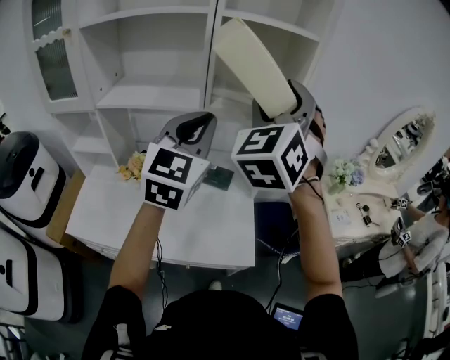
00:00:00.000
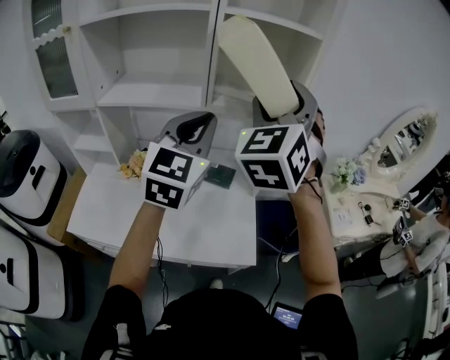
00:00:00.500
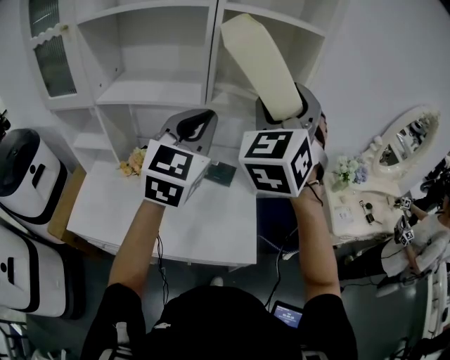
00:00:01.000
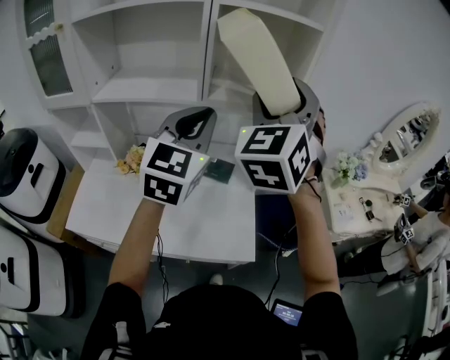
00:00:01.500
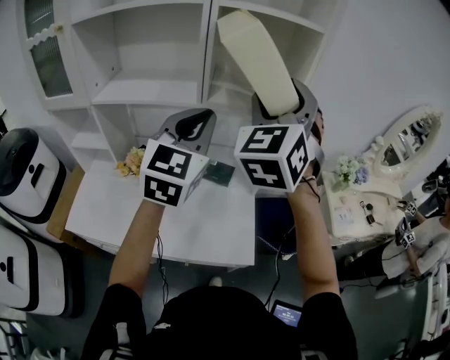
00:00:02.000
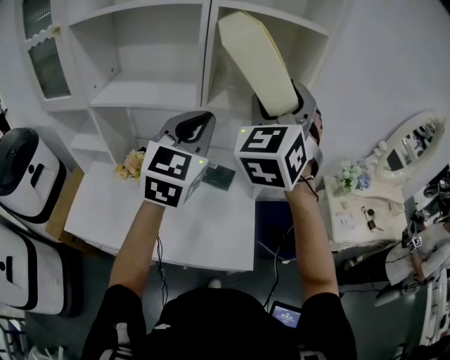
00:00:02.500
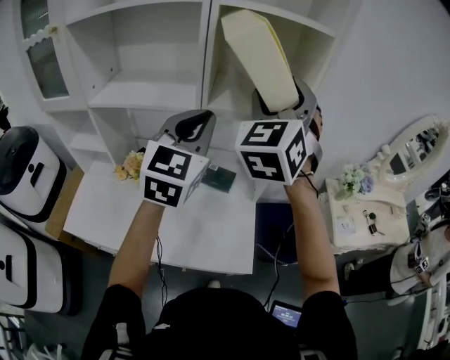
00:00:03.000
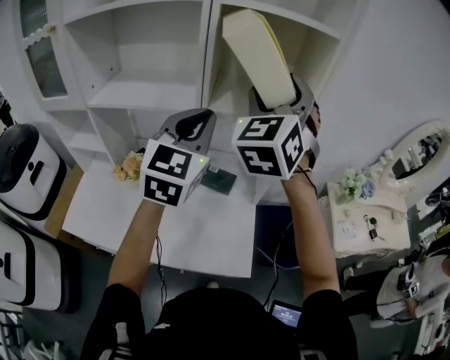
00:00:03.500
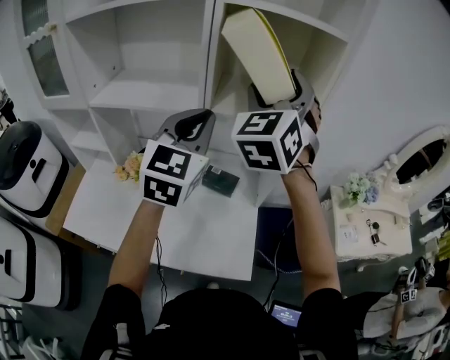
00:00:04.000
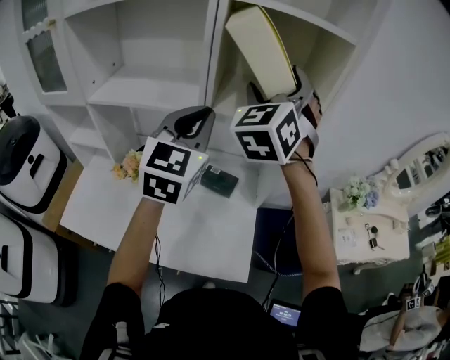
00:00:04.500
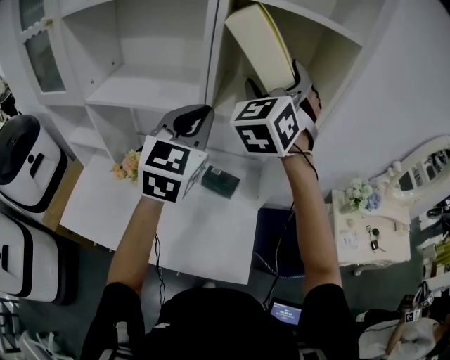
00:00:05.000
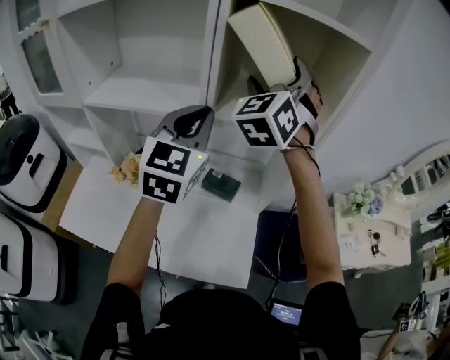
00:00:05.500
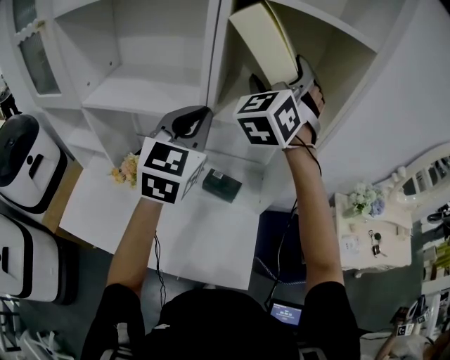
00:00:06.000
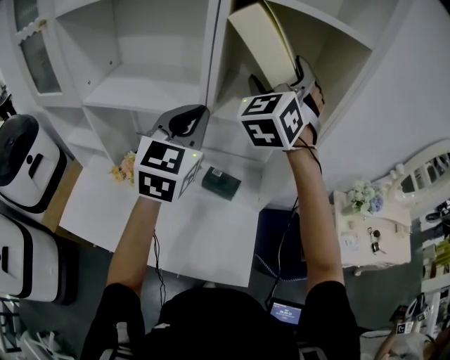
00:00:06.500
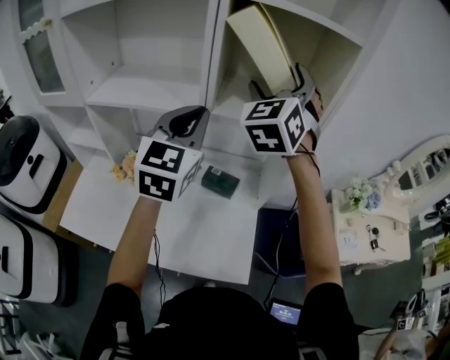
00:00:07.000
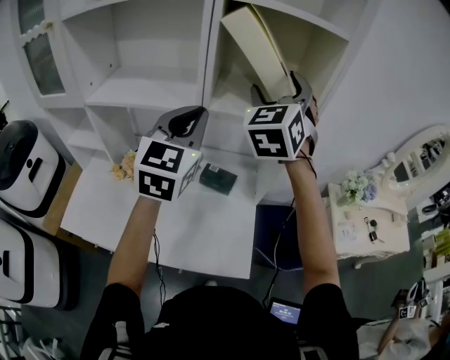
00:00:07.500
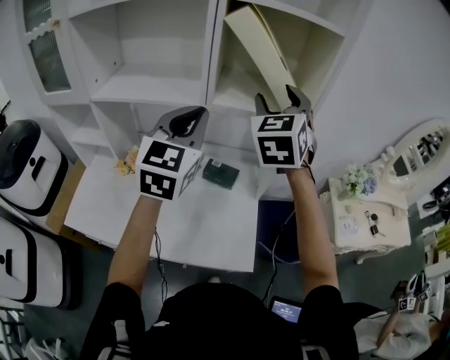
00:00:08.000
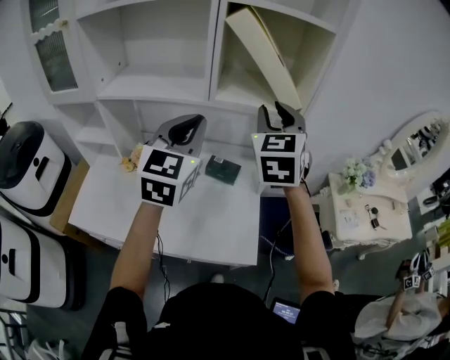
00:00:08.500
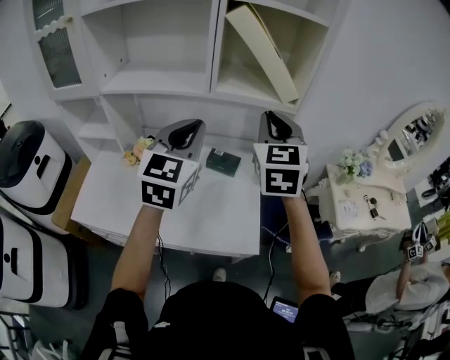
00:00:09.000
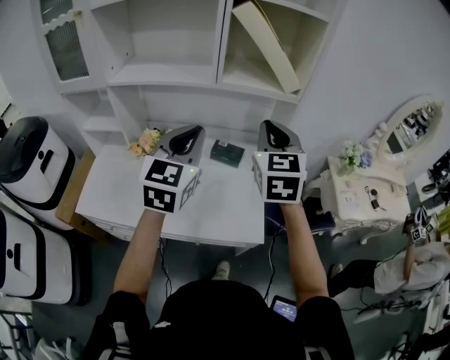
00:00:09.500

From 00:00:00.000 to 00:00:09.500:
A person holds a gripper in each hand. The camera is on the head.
From 00:00:00.000 to 00:00:02.000: The grippers stay close to where they were, moving slightly.
From 00:00:02.000 to 00:00:04.000: The right gripper moves forward, roughly 10 cm. The left gripper goes about 5 cm forward.
From 00:00:04.000 to 00:00:05.500: The left gripper heads forward, covering about 5 cm. Meanwhile the right gripper moves forward, about 10 cm.
From 00:00:05.500 to 00:00:07.500: The right gripper travels backward by some 5 cm.
From 00:00:07.500 to 00:00:09.500: The right gripper moves backward and downward, some 20 cm, rotates some 20 degrees, and closes. Meanwhile the left gripper travels backward by some 15 cm.

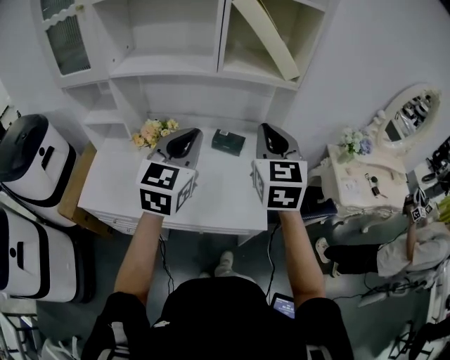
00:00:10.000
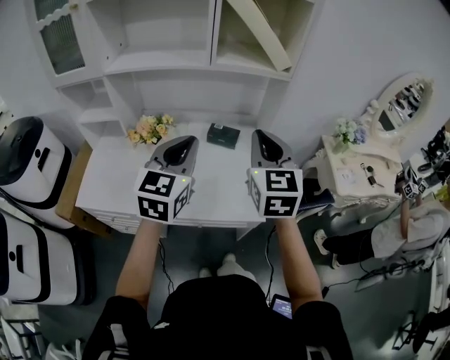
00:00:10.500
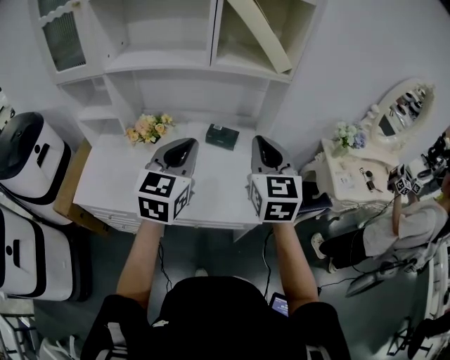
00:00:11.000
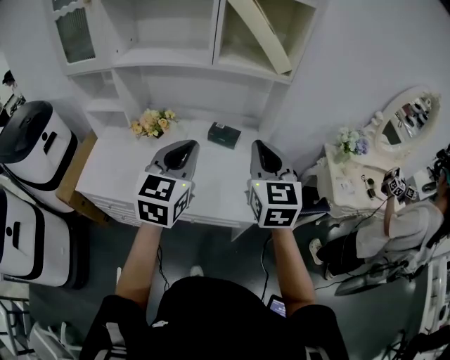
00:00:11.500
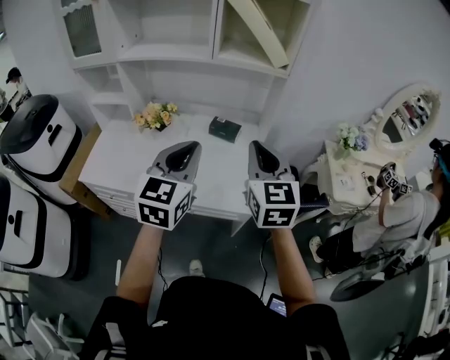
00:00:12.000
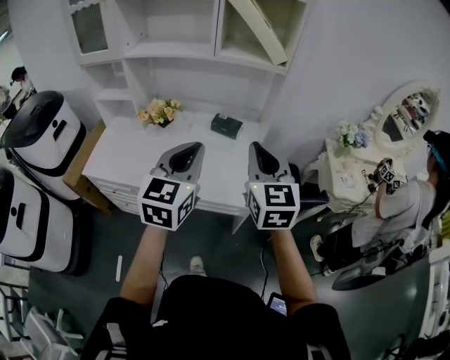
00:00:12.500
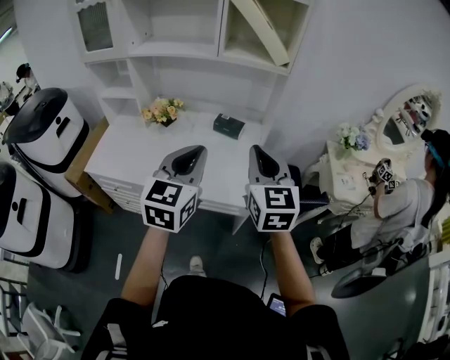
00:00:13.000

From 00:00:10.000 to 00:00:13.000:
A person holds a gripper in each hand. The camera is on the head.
From 00:00:10.000 to 00:00:11.500: The grippers both shift backward by about 5 cm.
From 00:00:11.500 to 00:00:13.000: Both grippers travel together backward, about 10 cm.

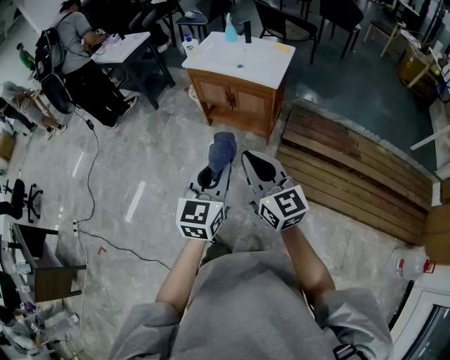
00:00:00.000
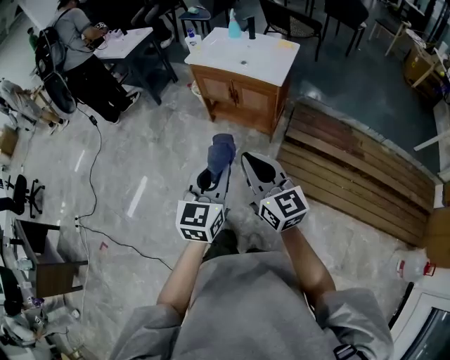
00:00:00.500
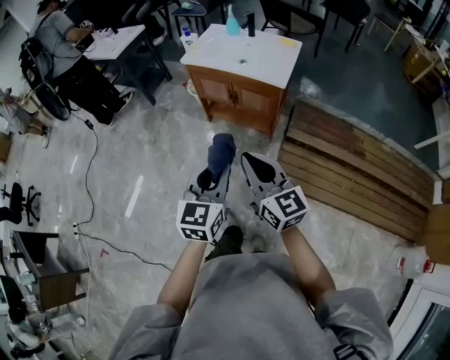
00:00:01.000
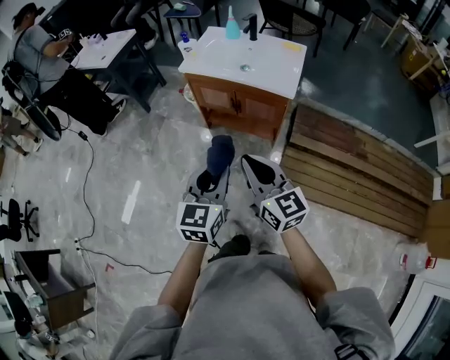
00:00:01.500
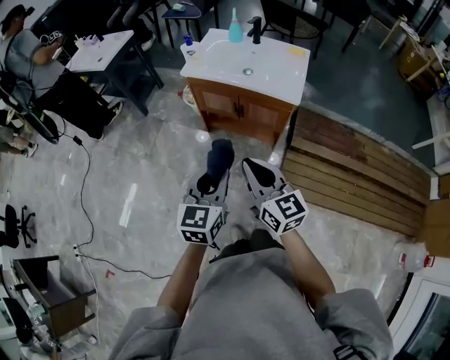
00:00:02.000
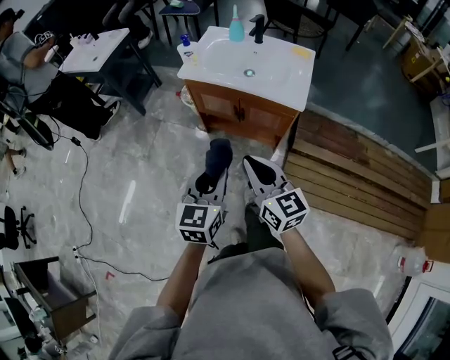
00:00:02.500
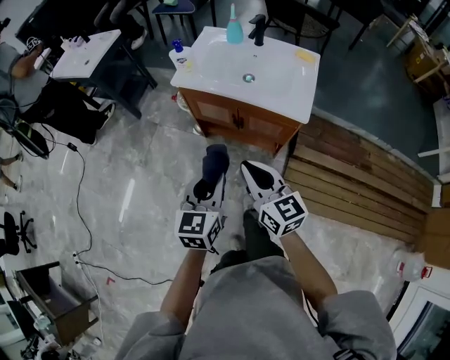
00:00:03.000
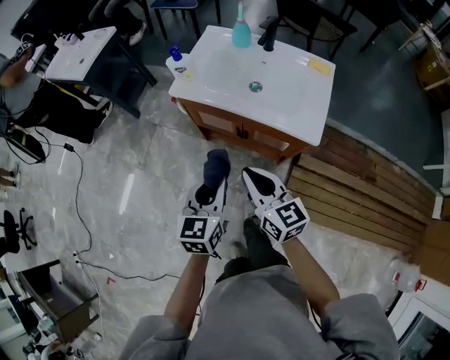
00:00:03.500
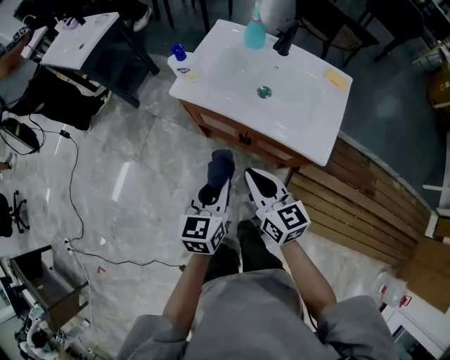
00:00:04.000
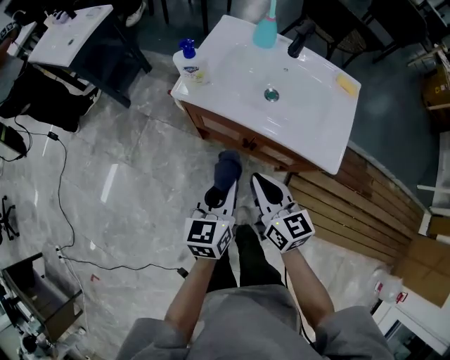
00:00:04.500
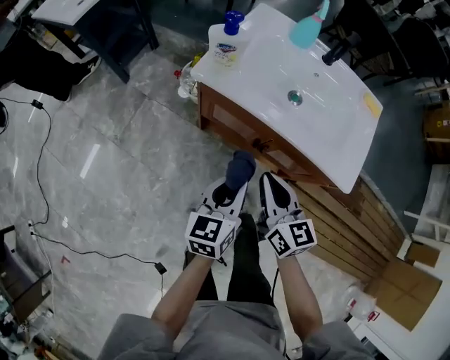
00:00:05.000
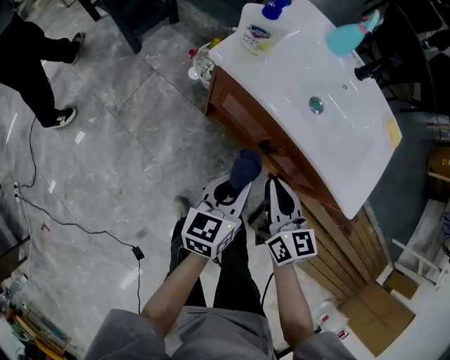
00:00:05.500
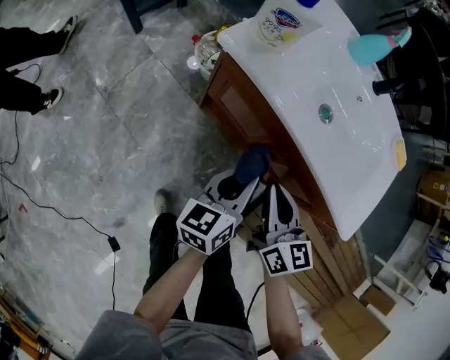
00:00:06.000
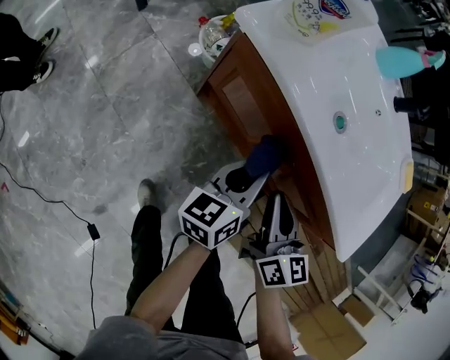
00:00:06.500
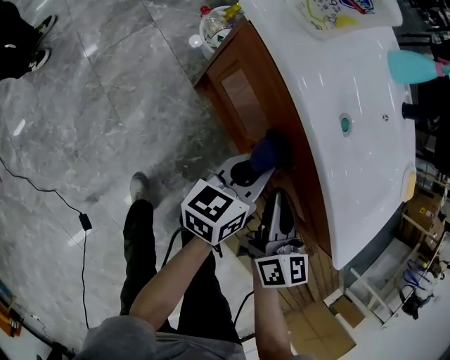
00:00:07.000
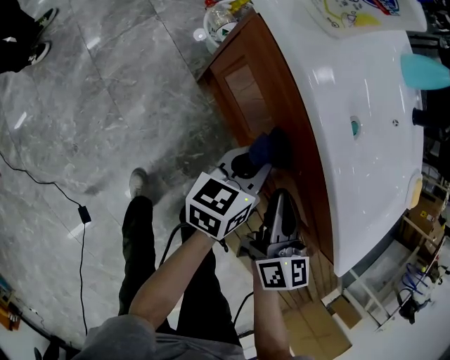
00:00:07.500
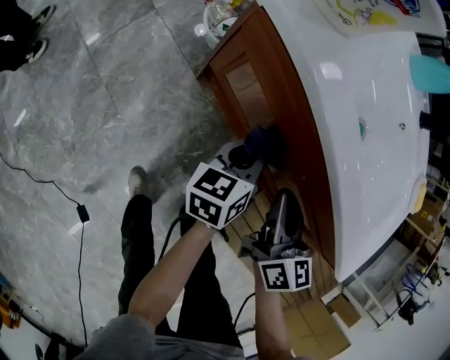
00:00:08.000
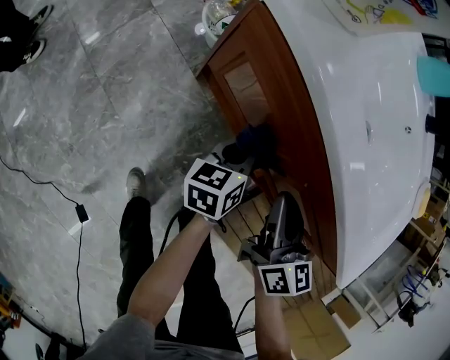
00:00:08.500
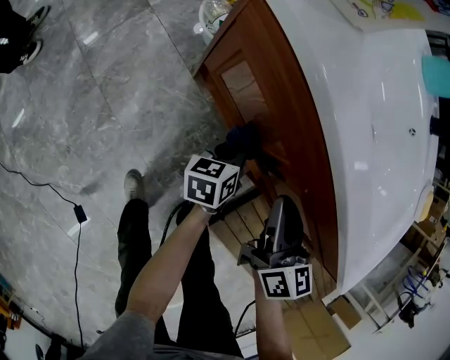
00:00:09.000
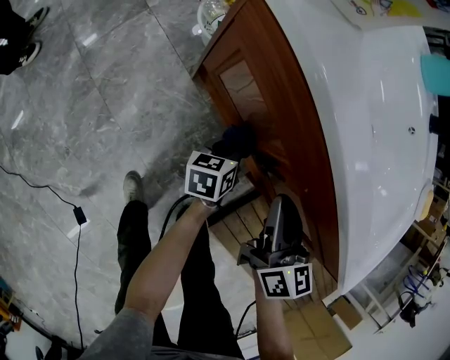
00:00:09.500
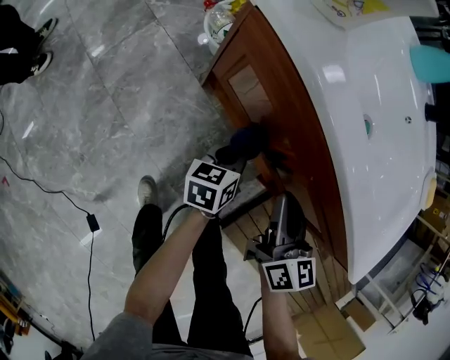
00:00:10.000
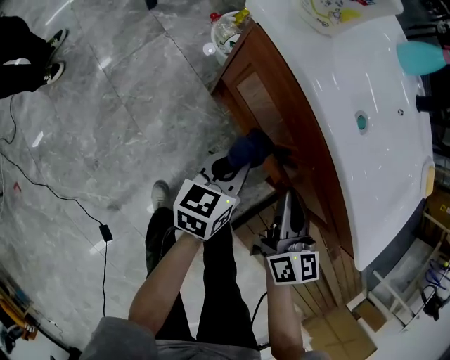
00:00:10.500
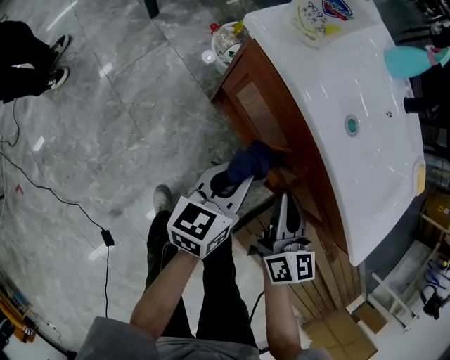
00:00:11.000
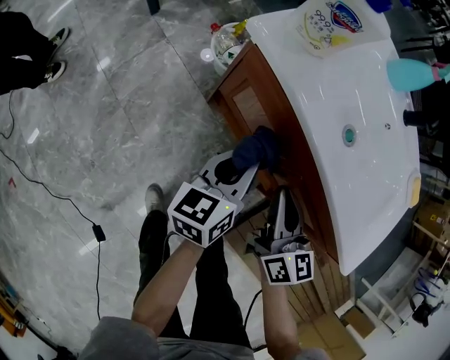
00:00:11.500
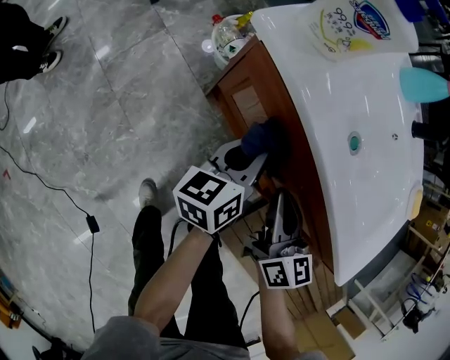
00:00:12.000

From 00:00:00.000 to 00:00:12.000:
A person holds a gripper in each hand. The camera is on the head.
From 00:00:00.000 to 00:00:02.000: Both grippers move forward and to the left, approximately 25 cm.
From 00:00:02.000 to 00:00:04.000: Both grippers travel together forward and downward, roughly 30 cm.
From 00:00:04.000 to 00:00:06.000: Both grippers move downward and forward, about 20 cm. The left gripper rotates approximately 30 degrees.
From 00:00:06.000 to 00:00:08.000: The right gripper travels downward by approximately 10 cm, while the left gripper heads downward and forward, covering roughly 15 cm.
From 00:00:08.000 to 00:00:10.000: The left gripper moves downward, some 10 cm.
From 00:00:10.000 to 00:00:12.000: The left gripper is displaced upward by roughly 15 cm, and rotates approximately 20 degrees, while the right gripper changes place by about 5 cm.

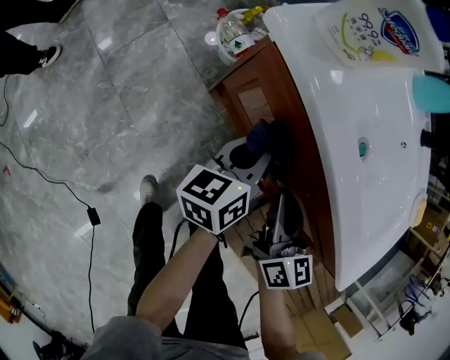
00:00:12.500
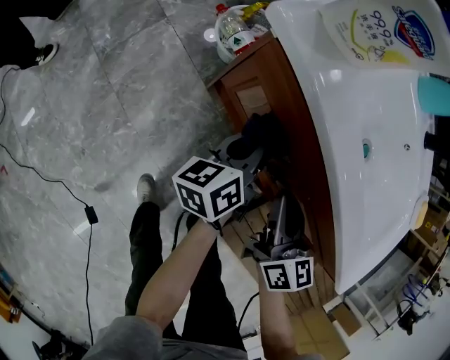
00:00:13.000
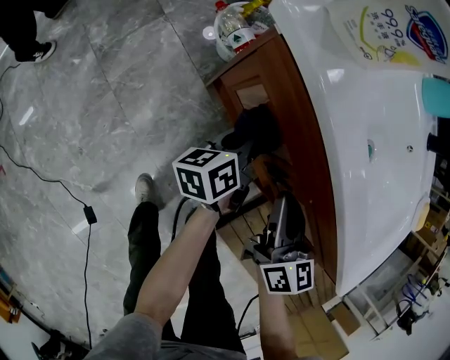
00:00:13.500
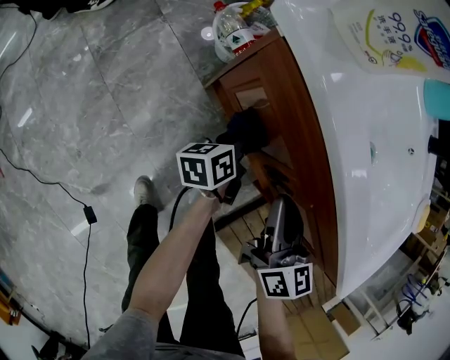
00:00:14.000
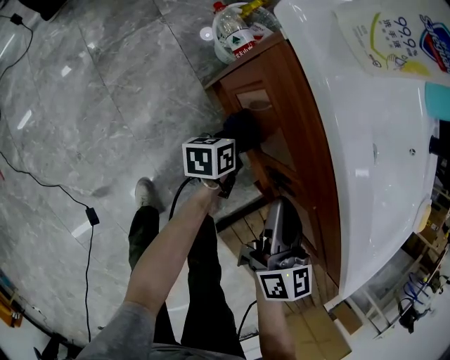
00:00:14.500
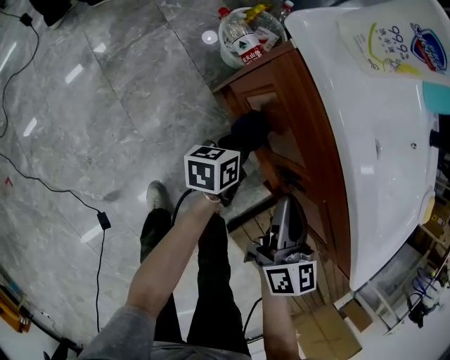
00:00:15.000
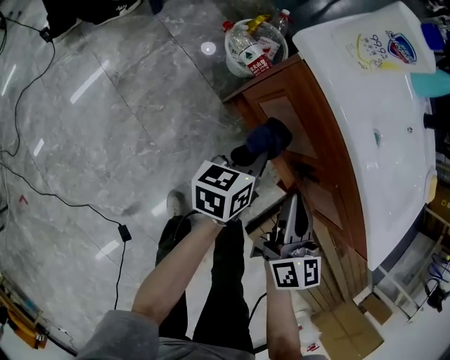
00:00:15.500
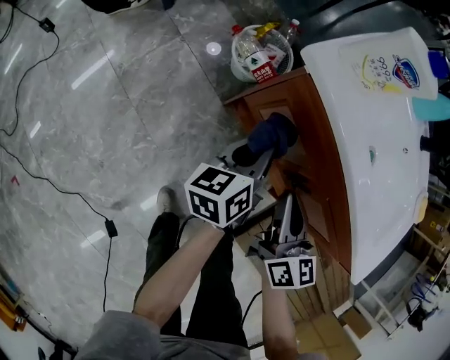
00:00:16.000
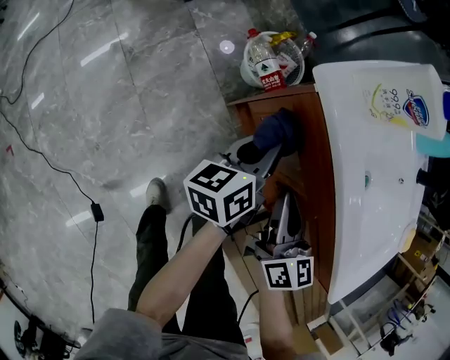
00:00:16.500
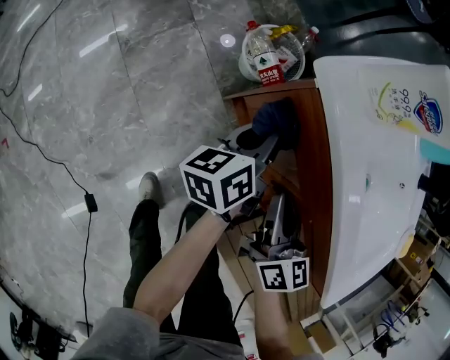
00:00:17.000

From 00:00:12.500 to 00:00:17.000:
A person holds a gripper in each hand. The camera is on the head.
From 00:00:12.500 to 00:00:14.500: The left gripper moves downward, roughly 20 cm, and rotates some 20 degrees.
From 00:00:14.500 to 00:00:17.000: The right gripper travels to the left by about 5 cm, while the left gripper moves upward, approximately 20 cm, and changes its angle by some 30 degrees.
